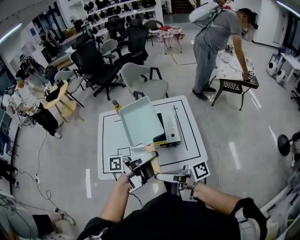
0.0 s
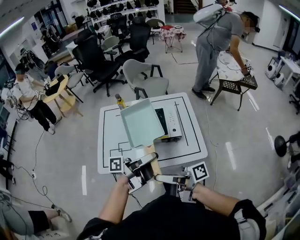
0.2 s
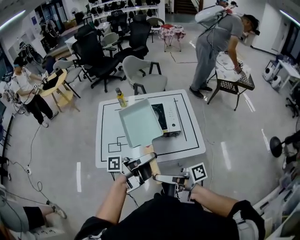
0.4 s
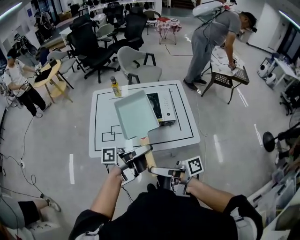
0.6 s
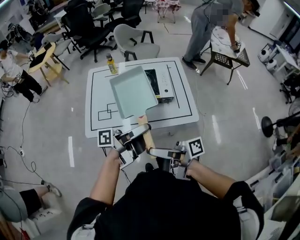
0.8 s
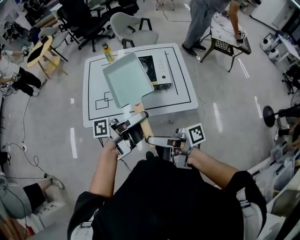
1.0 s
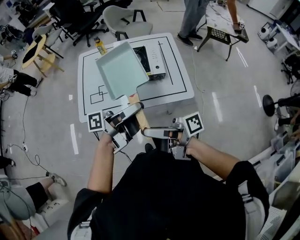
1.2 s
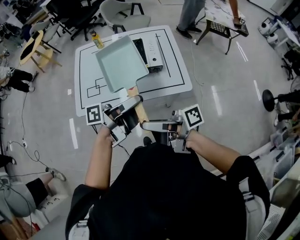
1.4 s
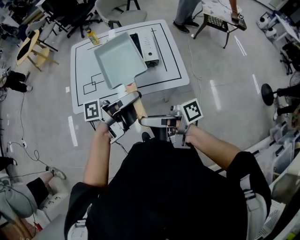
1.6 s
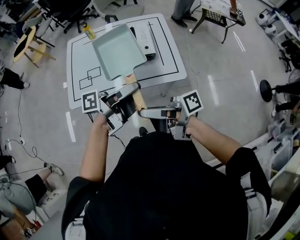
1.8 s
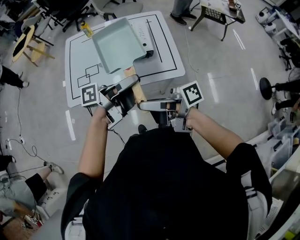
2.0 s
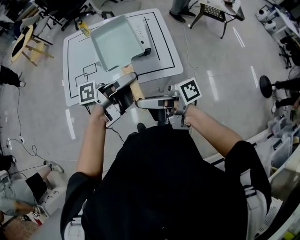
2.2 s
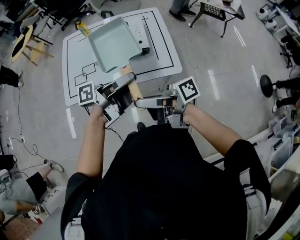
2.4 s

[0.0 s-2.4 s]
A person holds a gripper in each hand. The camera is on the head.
0.0 to 1.2 s: The left gripper moves approximately 10 cm, while the right gripper ends up some 10 cm from where it was.
1.2 to 2.4 s: The left gripper changes place by some 10 cm, while the right gripper changes place by some 5 cm.

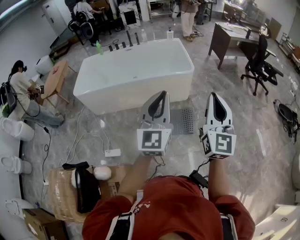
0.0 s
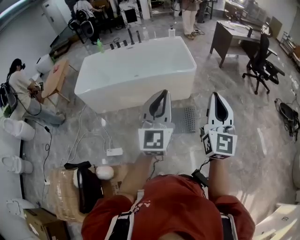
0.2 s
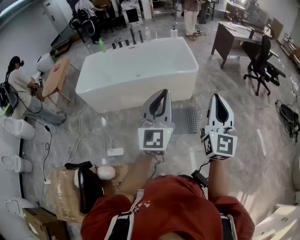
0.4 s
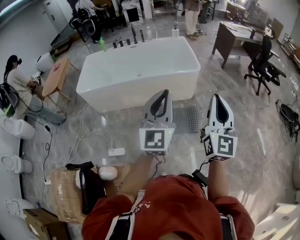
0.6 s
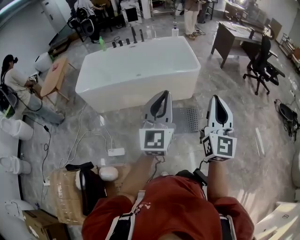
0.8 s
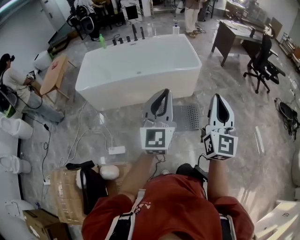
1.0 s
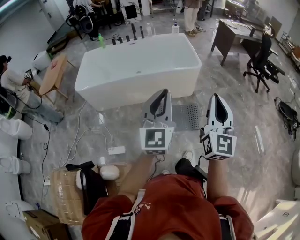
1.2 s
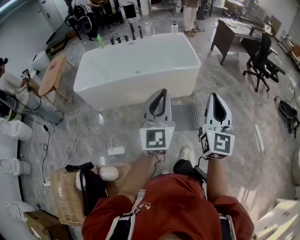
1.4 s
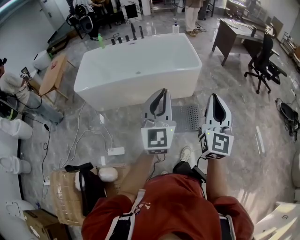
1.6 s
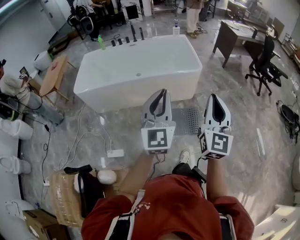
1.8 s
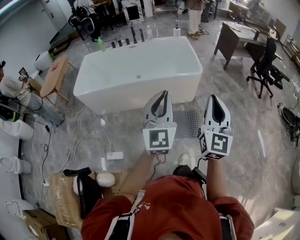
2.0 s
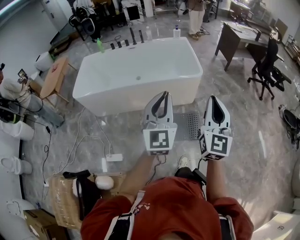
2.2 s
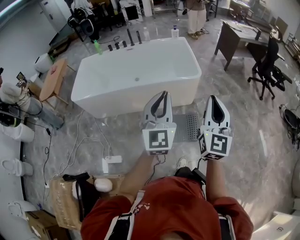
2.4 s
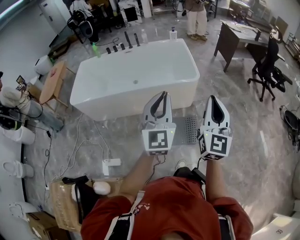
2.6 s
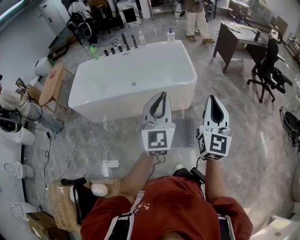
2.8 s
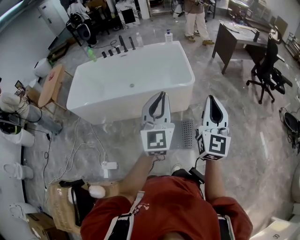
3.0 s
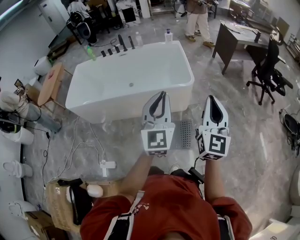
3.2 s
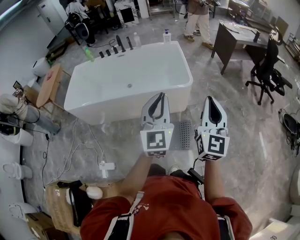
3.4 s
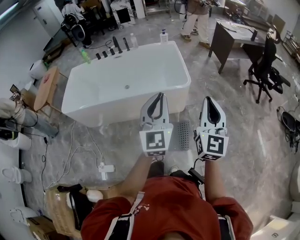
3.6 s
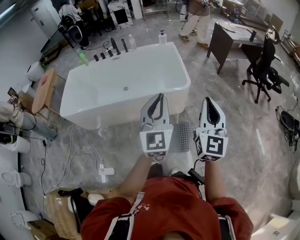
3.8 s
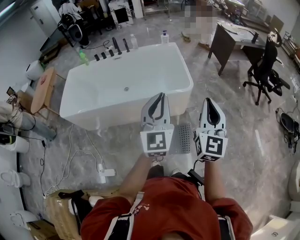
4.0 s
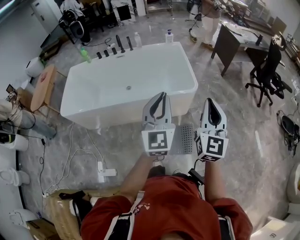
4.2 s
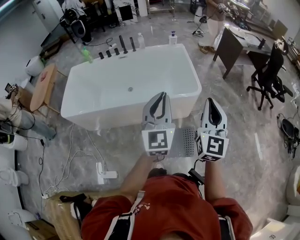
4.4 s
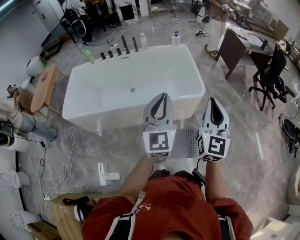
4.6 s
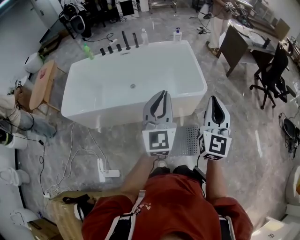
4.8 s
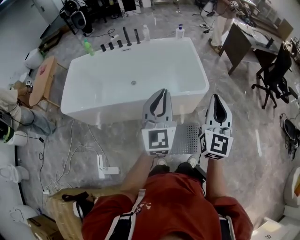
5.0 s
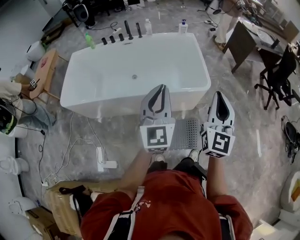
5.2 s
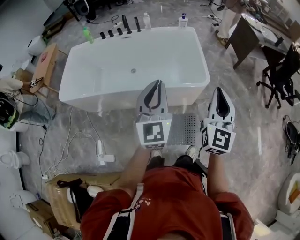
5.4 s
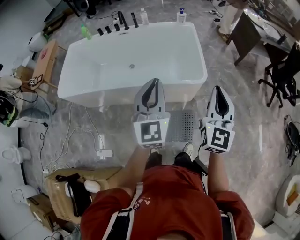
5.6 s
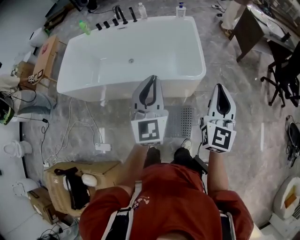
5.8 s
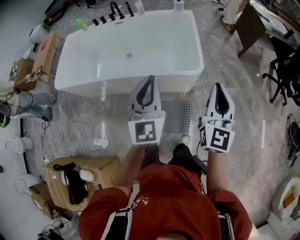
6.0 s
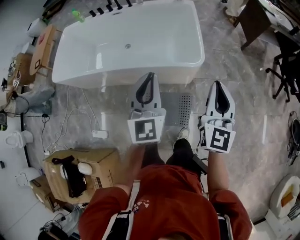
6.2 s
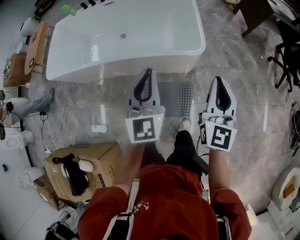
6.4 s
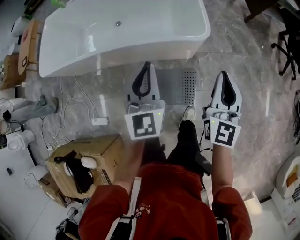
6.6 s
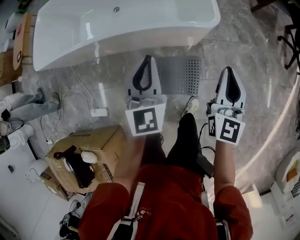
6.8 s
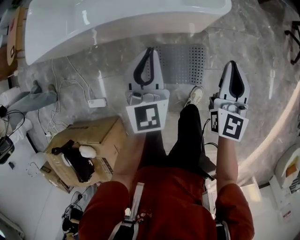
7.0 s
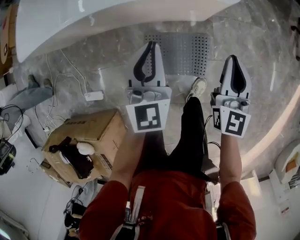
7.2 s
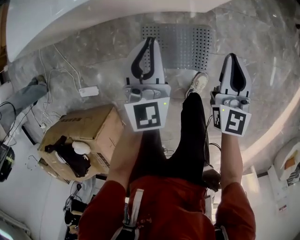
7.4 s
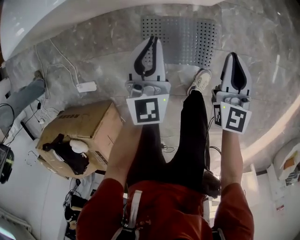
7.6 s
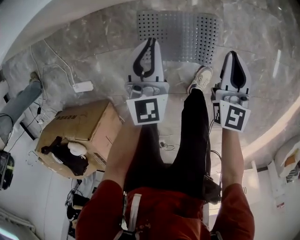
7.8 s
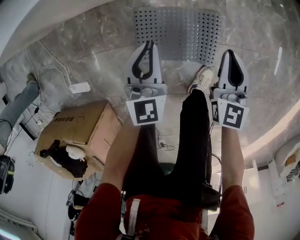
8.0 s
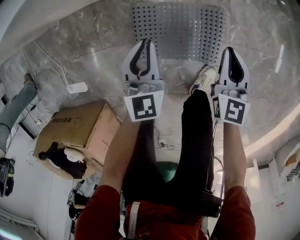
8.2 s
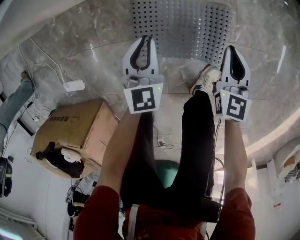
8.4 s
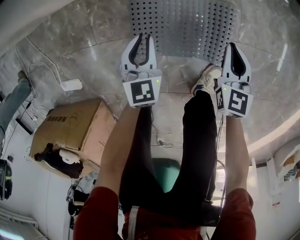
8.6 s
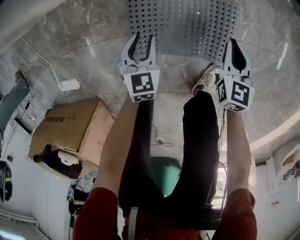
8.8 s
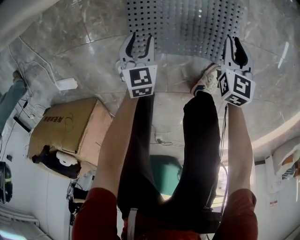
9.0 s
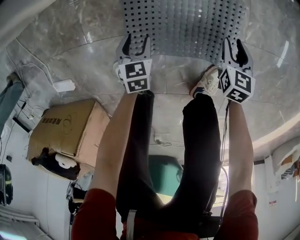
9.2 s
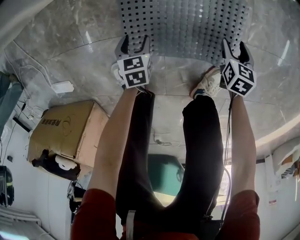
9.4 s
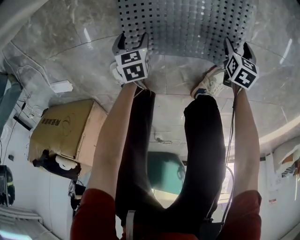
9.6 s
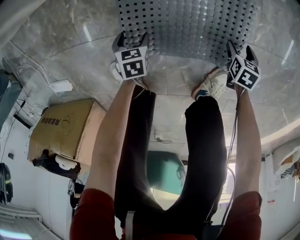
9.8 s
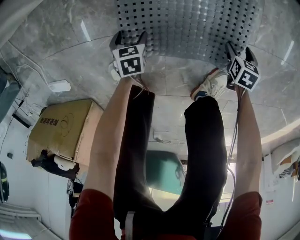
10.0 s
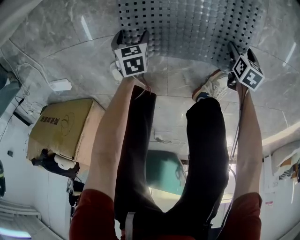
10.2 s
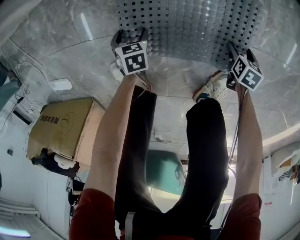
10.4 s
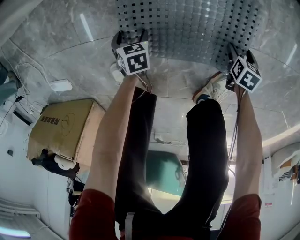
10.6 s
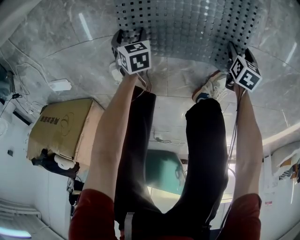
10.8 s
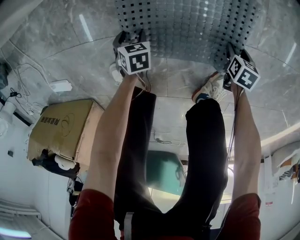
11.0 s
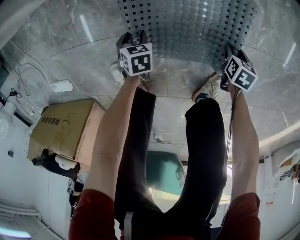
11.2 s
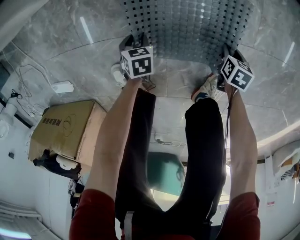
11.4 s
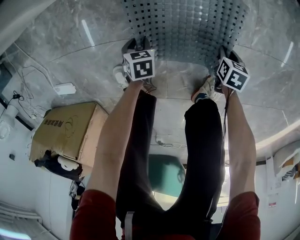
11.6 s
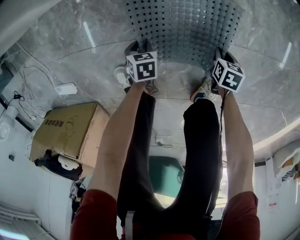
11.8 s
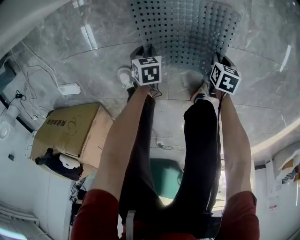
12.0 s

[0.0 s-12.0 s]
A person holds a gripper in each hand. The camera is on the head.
0.0 to 1.6 s: Both grippers travel together to the left, roughly 10 cm.
1.6 to 3.0 s: Both grippers move forward and to the right, roughly 25 cm.
3.0 to 4.4 s: The grippers both shift forward and to the left by roughly 15 cm.
4.4 to 6.0 s: The right gripper is displaced to the right, forward and downward by some 20 cm. The left gripper shifts roughly 15 cm forward, to the right and downward.
6.0 to 7.6 s: The two grippers go some 40 cm downward. The right gripper swivels about 20 degrees.
7.6 to 9.0 s: Both grippers move downward, some 40 cm. The left gripper points its fingers roughly 40 degrees further downward, and opens its fingers. The right gripper changes its angle by some 30 degrees.
9.0 to 10.4 s: The grippers both shift downward by some 20 cm. The left gripper turns by approximately 30 degrees, and opens its fingers; the right gripper points its fingers approximately 30 degrees further downward, and opens its fingers.
10.4 to 12.0 s: Both grippers move upward, some 5 cm. The right gripper closes; the left gripper closes.

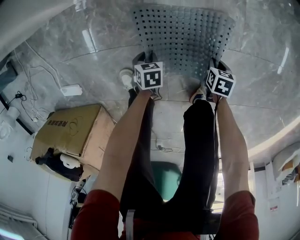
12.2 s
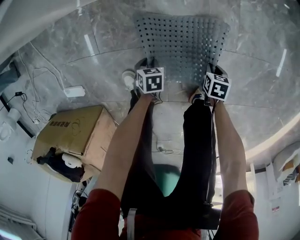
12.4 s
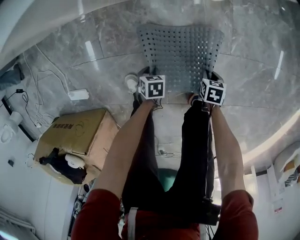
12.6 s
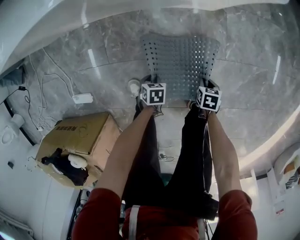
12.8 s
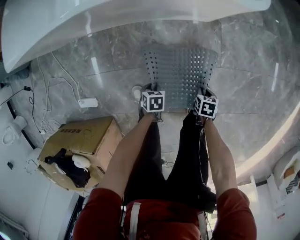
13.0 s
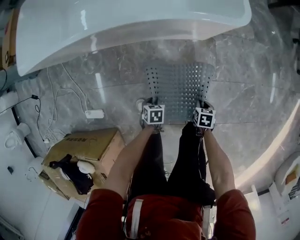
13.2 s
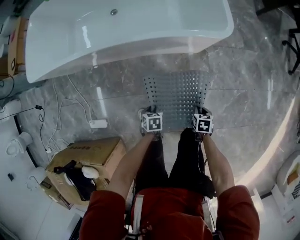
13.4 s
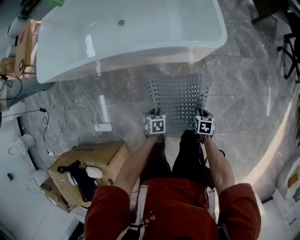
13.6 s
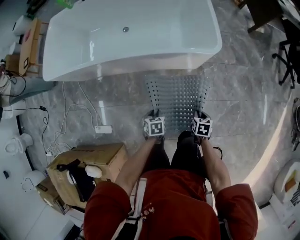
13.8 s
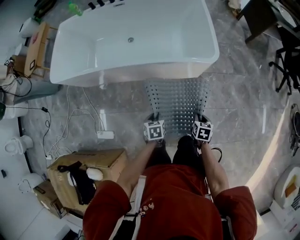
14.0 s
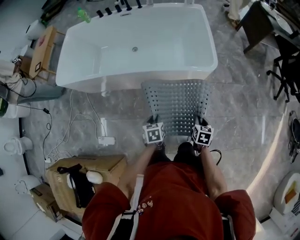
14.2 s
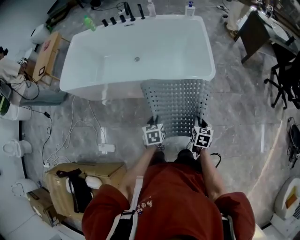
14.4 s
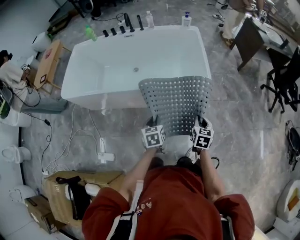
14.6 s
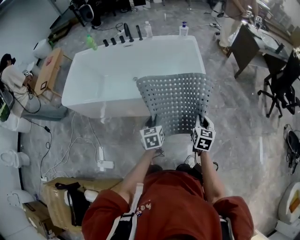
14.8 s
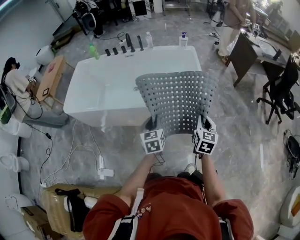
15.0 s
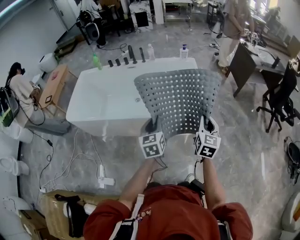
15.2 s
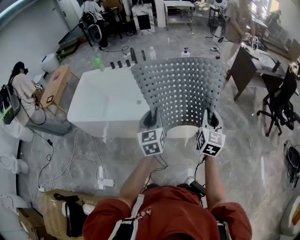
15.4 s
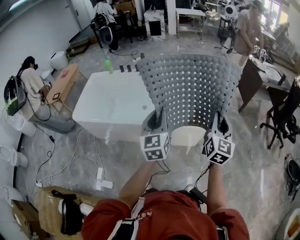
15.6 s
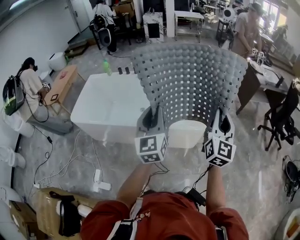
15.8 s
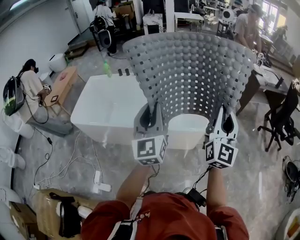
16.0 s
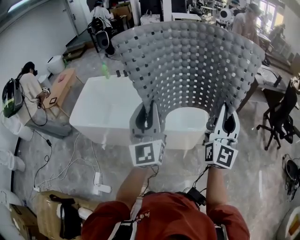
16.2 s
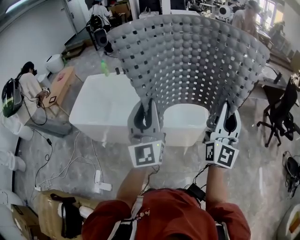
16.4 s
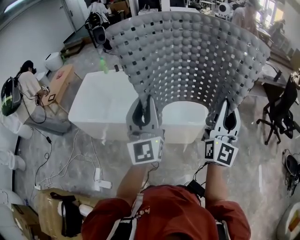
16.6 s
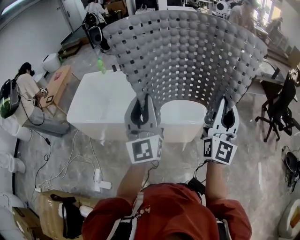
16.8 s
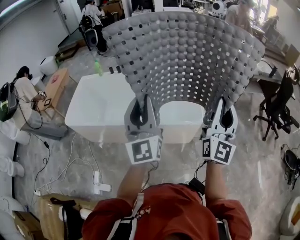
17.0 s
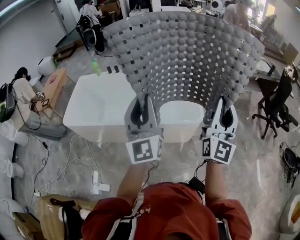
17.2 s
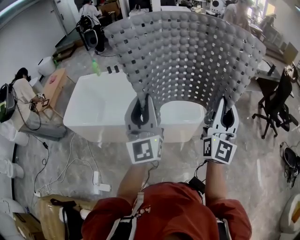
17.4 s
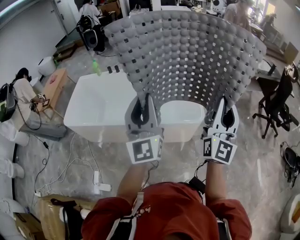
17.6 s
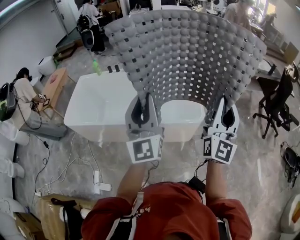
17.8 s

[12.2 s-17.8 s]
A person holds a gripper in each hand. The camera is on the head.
12.2 to 13.6 s: Both grippers move upward, about 35 cm.
13.6 to 15.0 s: The grippers both shift upward by about 40 cm. The left gripper angles its fingers upward, by about 50 degrees, while the right gripper angles its fingers upward, by approximately 50 degrees.
15.0 to 16.4 s: Both grippers travel together upward, approximately 35 cm. The right gripper angles its fingers upward, by roughly 50 degrees; the left gripper angles its fingers upward, by about 50 degrees.
16.4 to 17.8 s: There are only small adjustments of the grippers.

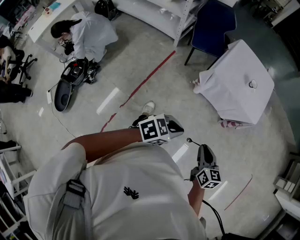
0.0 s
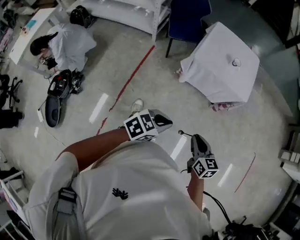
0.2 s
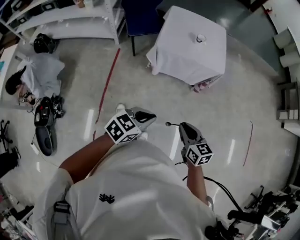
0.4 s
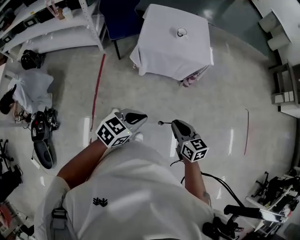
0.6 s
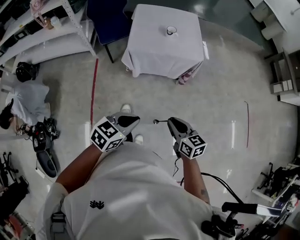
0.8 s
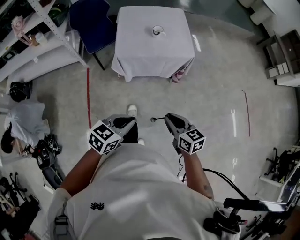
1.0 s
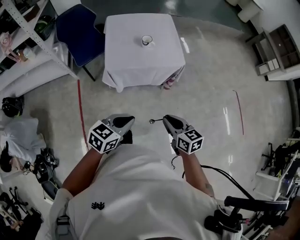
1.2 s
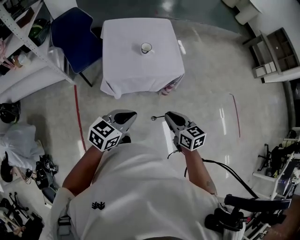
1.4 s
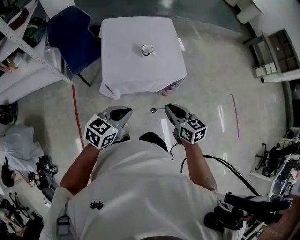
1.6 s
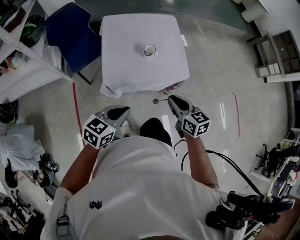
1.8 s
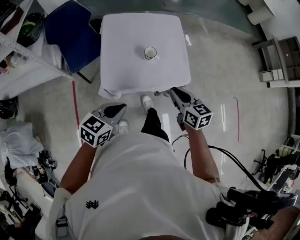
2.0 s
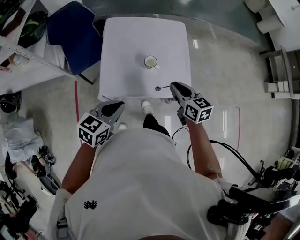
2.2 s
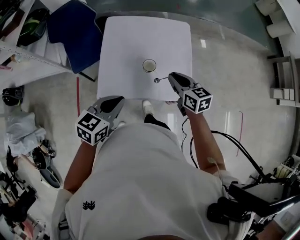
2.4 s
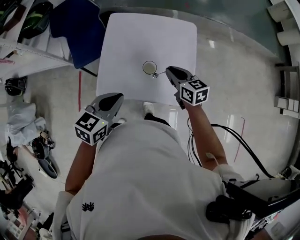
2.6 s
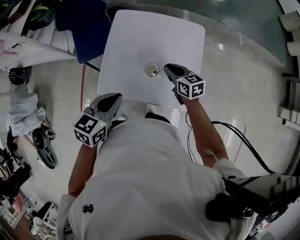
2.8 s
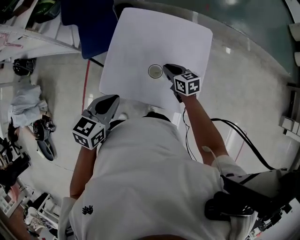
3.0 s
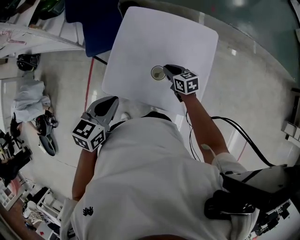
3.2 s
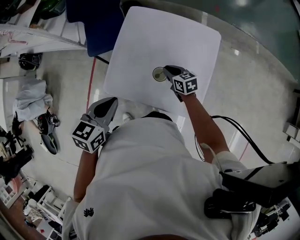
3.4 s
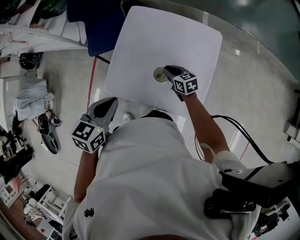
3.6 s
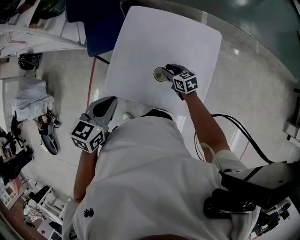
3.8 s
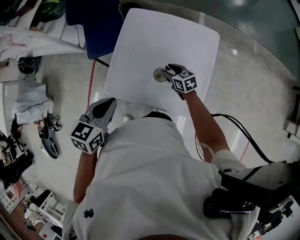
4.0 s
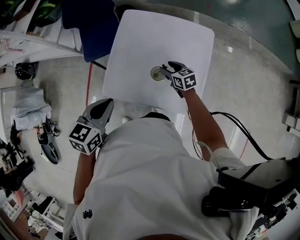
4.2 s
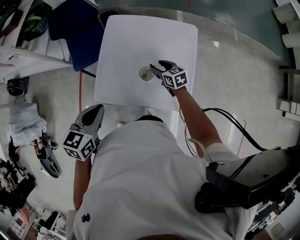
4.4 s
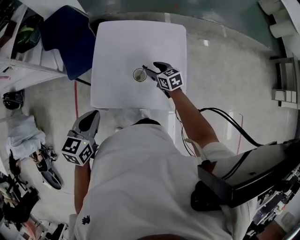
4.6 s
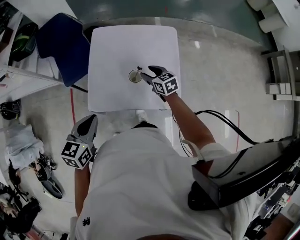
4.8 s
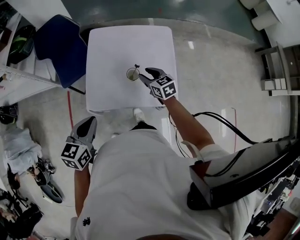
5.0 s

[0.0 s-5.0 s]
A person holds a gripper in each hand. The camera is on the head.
0.0 to 1.6 s: The two grippers go some 35 cm forward.
1.6 to 3.4 s: The right gripper ends up some 50 cm from where it was, and rotates some 30 degrees, while the left gripper shifts by some 30 cm, and rotates approximately 40 degrees.
3.4 to 5.0 s: The right gripper travels upward and backward by roughly 15 cm, swivels roughly 20 degrees, and opens its fingers. The left gripper goes roughly 10 cm backward and to the left.
